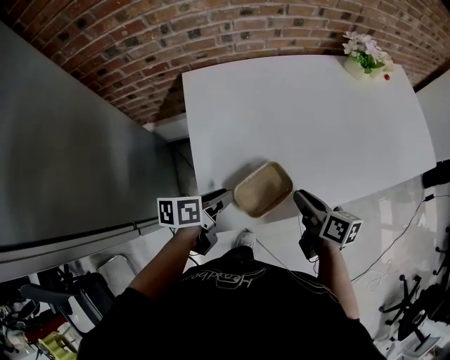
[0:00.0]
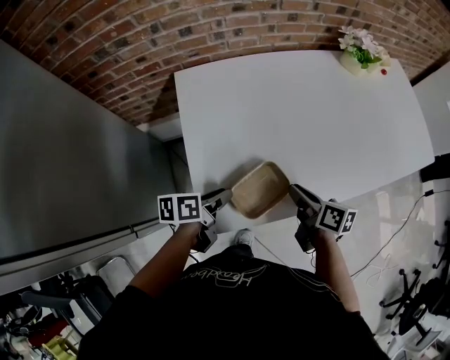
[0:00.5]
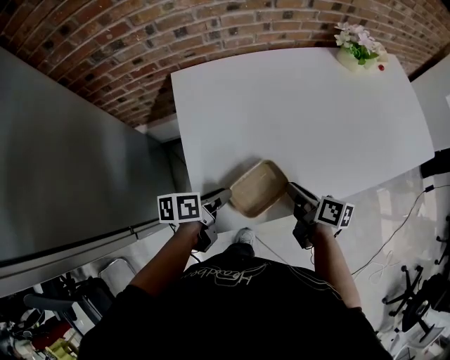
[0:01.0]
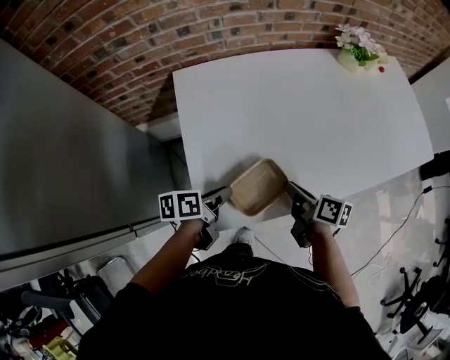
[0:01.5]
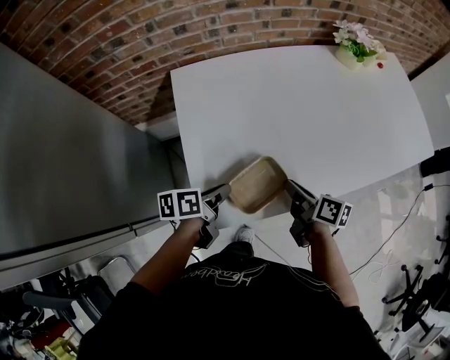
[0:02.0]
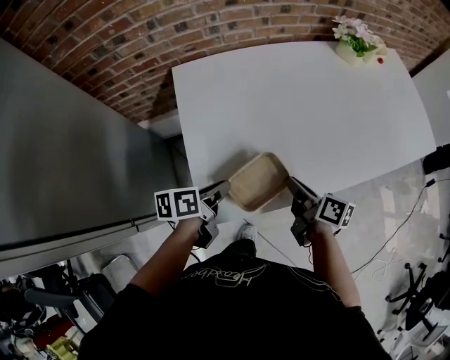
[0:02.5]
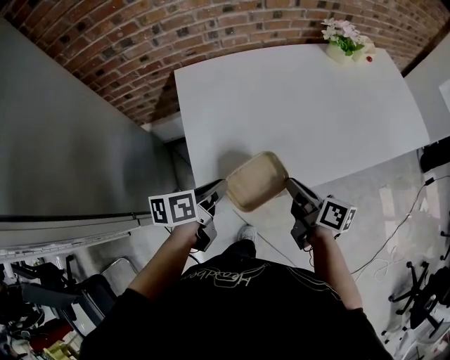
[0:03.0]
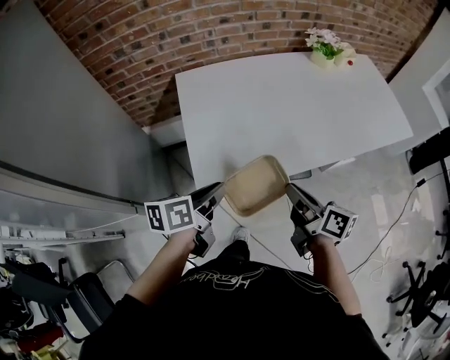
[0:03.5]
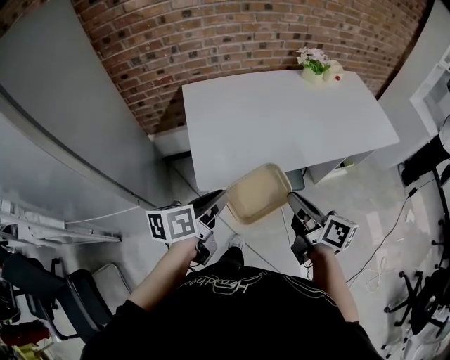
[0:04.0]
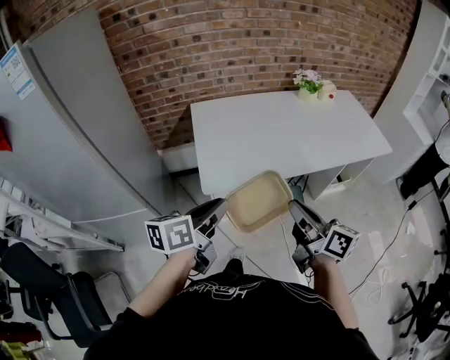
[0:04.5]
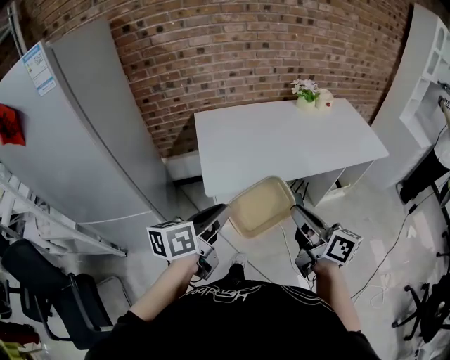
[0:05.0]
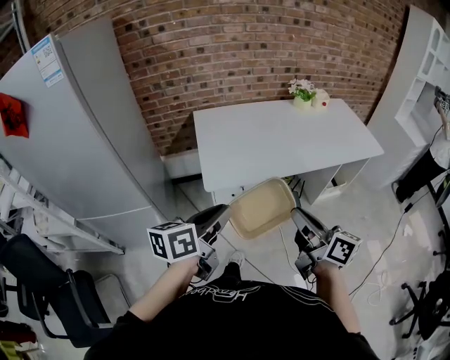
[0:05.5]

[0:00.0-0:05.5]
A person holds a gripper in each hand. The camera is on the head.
0:00.0 to 0:02.0: The grippers move only a little.
0:02.0 to 0:03.5: The left gripper moves upward and backward, approximately 15 cm, while the right gripper heads backward and upward, covering approximately 20 cm.
0:03.5 to 0:05.5: The two grippers go approximately 25 cm backward and upward. The left gripper changes its angle by approximately 20 degrees.

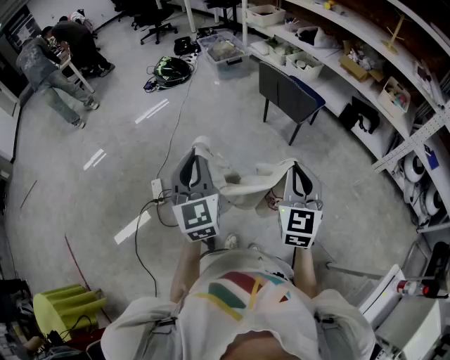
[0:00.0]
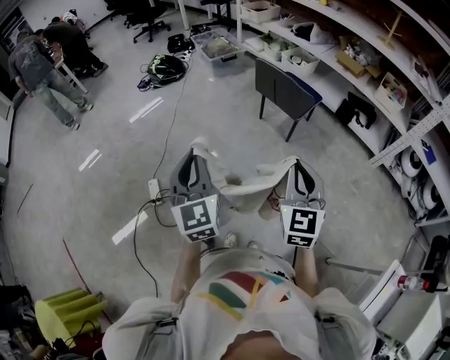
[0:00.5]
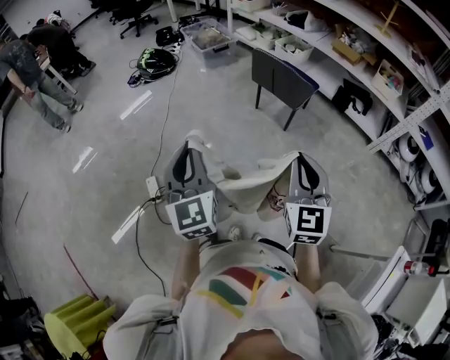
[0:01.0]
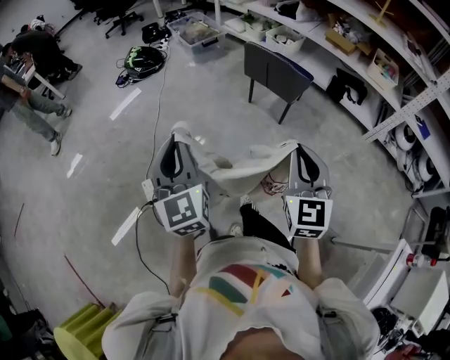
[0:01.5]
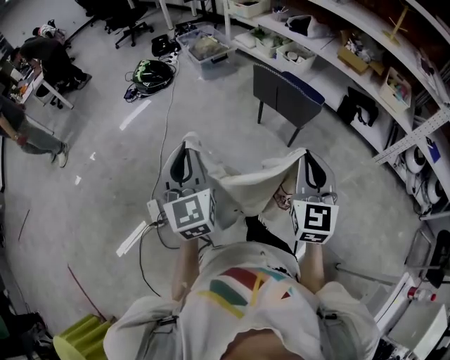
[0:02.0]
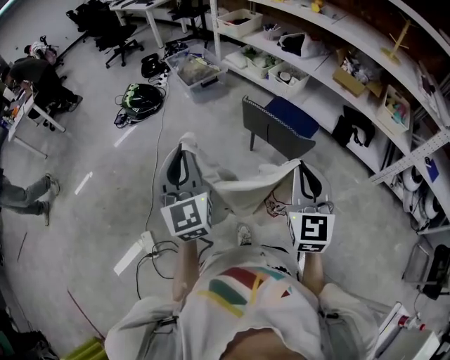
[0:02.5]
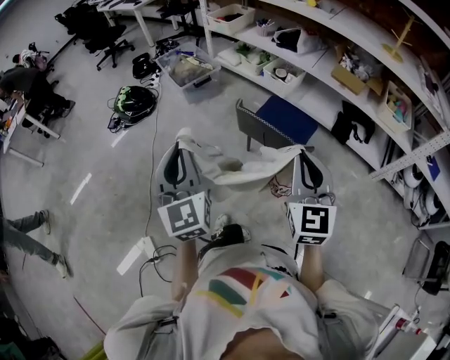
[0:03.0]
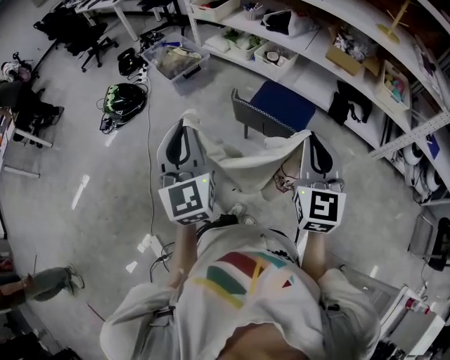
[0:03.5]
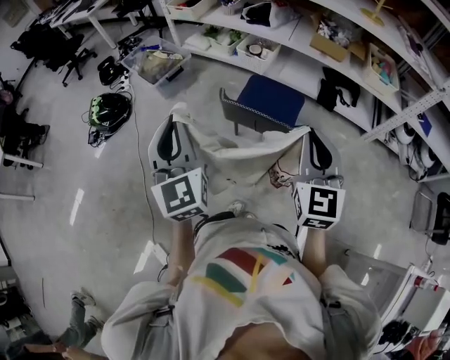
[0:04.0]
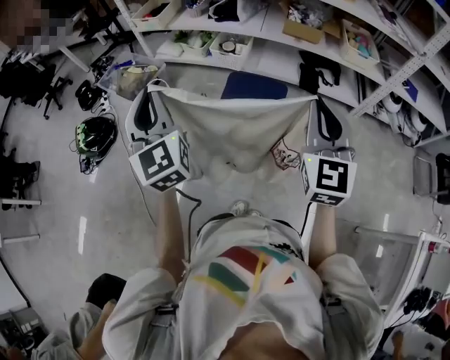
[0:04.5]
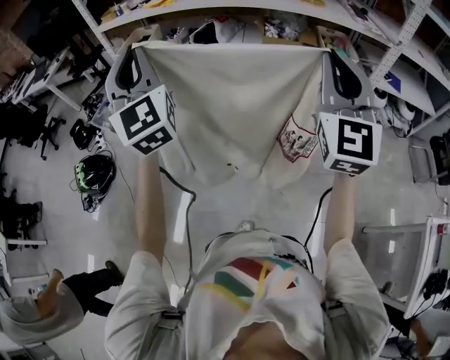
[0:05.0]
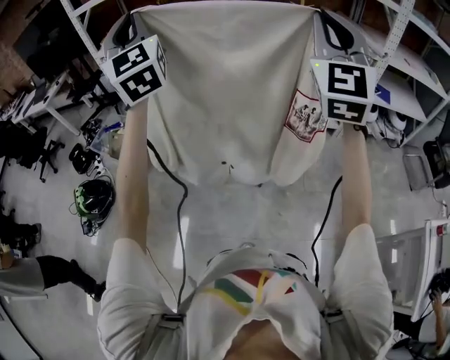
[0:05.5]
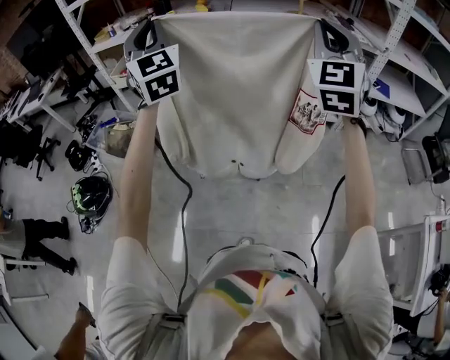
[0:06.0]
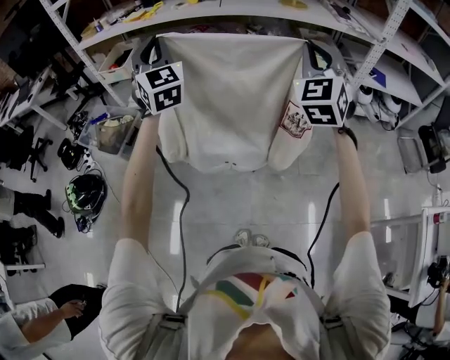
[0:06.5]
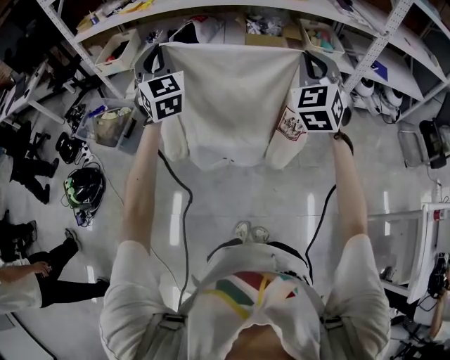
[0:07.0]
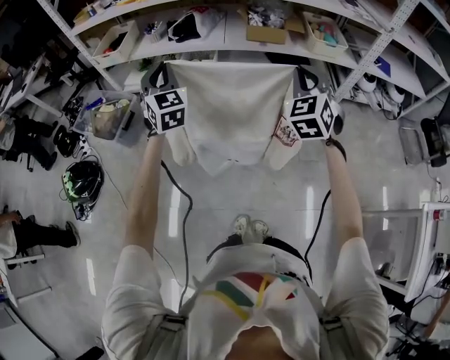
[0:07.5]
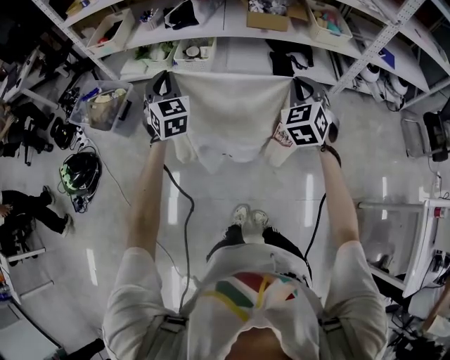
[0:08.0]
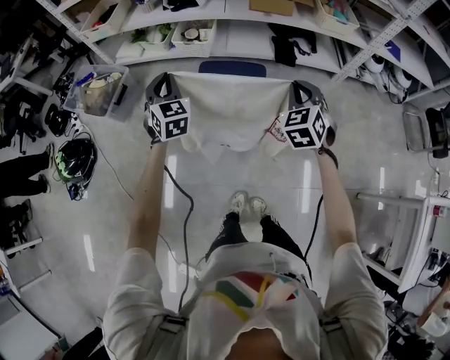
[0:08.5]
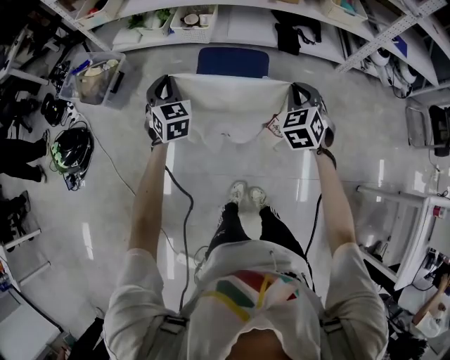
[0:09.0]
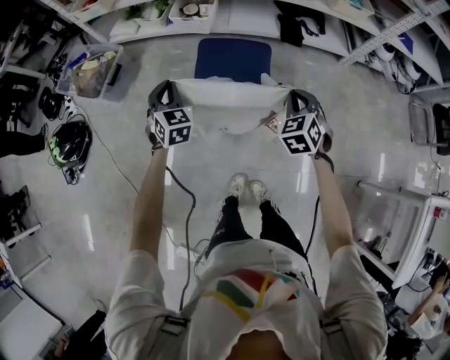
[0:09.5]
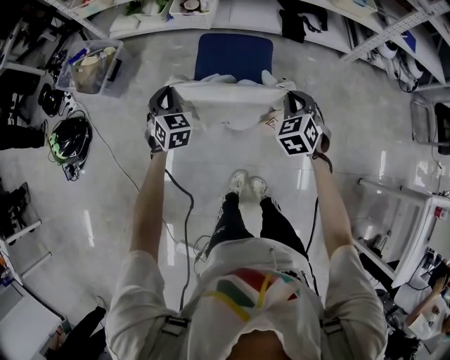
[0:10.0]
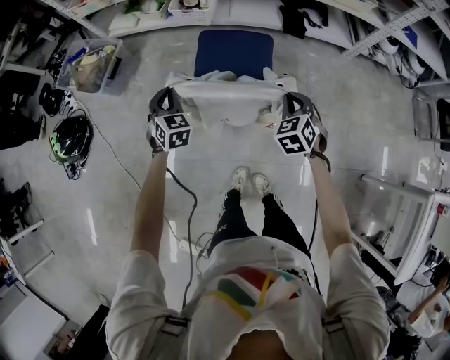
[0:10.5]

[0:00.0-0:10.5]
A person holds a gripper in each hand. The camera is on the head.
0:00.0 to 0:02.0: The grippers both shift forward by about 15 cm.
0:02.0 to 0:04.0: The grippers both shift forward by about 30 cm.
0:04.0 to 0:06.5: The left gripper heads forward, covering some 35 cm, and turns by roughly 30 degrees. Meanwhile the right gripper travels forward, upward and to the right by roughly 25 cm, and turns by roughly 40 degrees.
0:06.5 to 0:08.5: The two grippers go some 30 cm downward. The right gripper tips its fingers downward by some 30 degrees. Meanwhile the left gripper swivels approximately 30 degrees.
0:08.5 to 0:10.5: Both grippers travel together downward, about 15 cm.

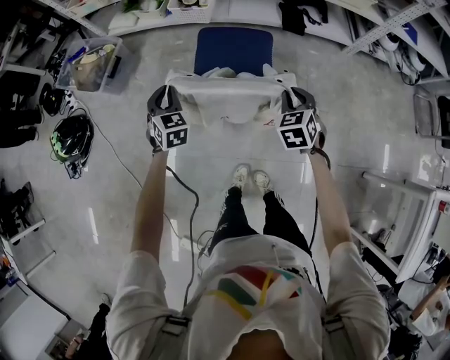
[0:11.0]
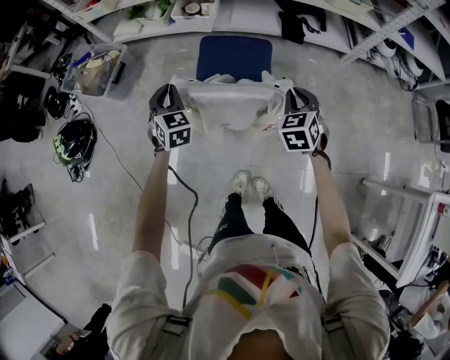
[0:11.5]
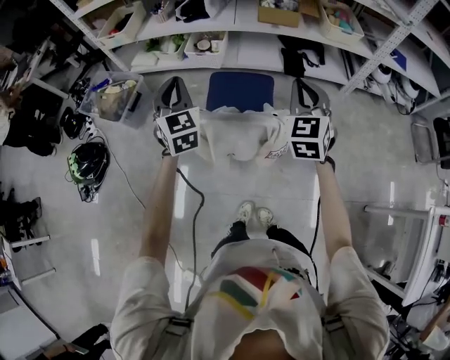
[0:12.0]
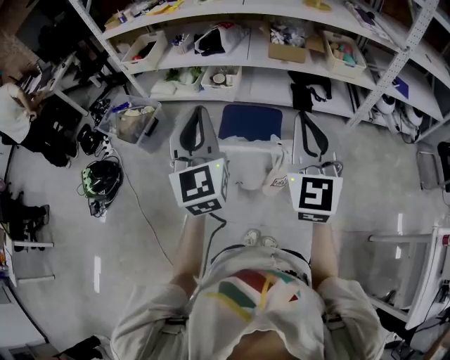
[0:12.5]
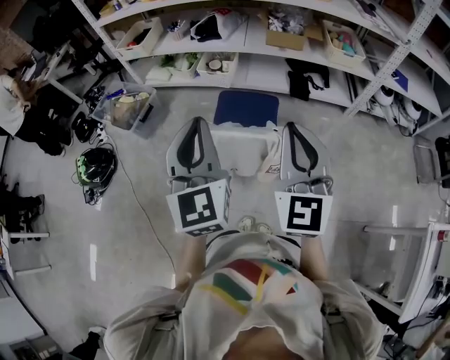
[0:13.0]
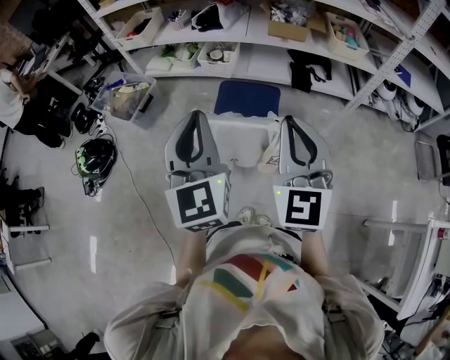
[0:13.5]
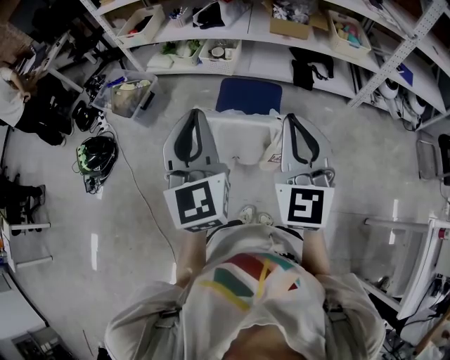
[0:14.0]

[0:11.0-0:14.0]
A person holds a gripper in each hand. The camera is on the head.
0:11.0 to 0:12.5: Both grippers move upward, about 35 cm. The left gripper tips its fingers upward by approximately 40 degrees; the right gripper tilts its fingers approximately 50 degrees upward.
0:12.5 to 0:14.0: The left gripper goes about 5 cm backward. The right gripper changes place by approximately 5 cm.

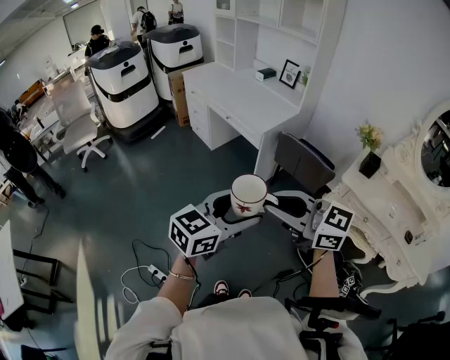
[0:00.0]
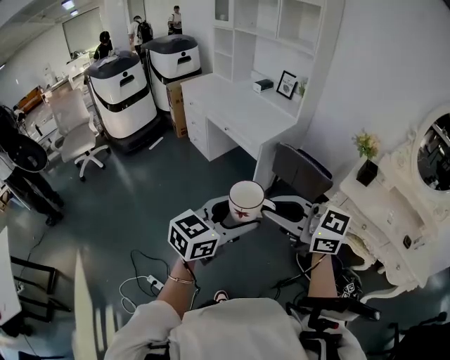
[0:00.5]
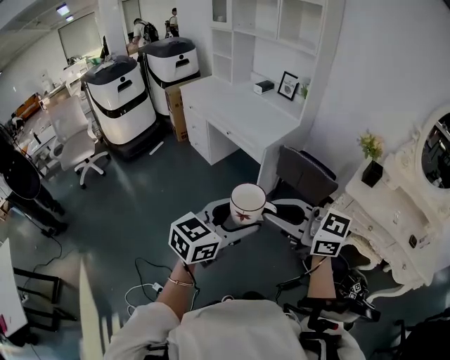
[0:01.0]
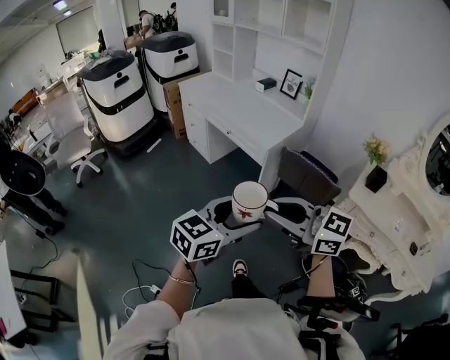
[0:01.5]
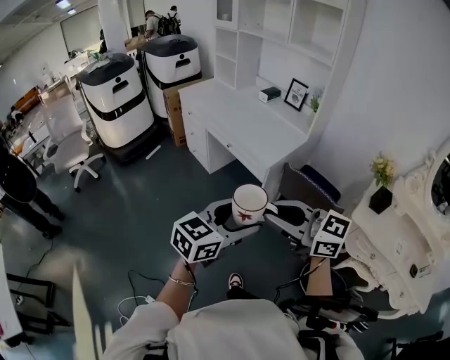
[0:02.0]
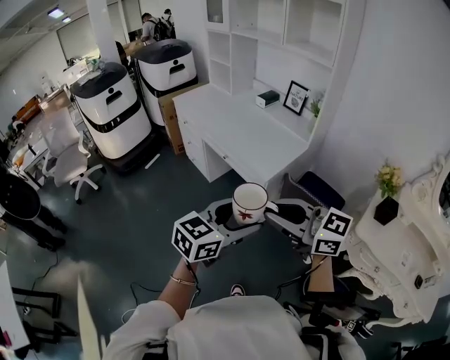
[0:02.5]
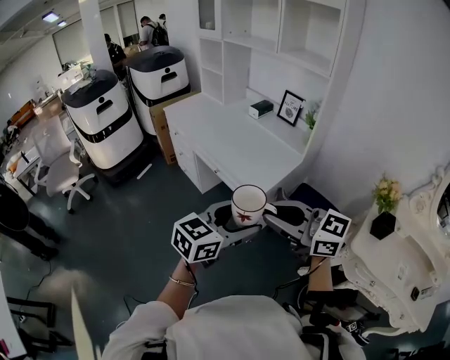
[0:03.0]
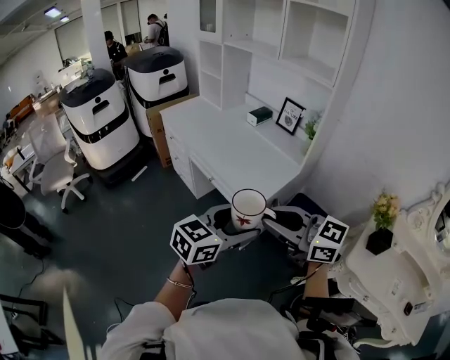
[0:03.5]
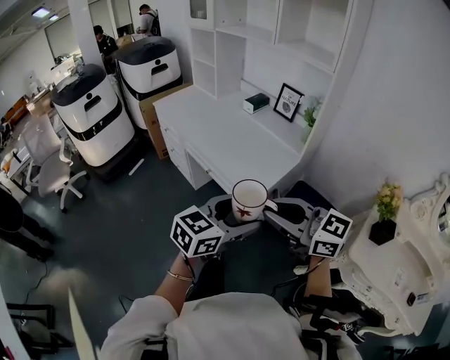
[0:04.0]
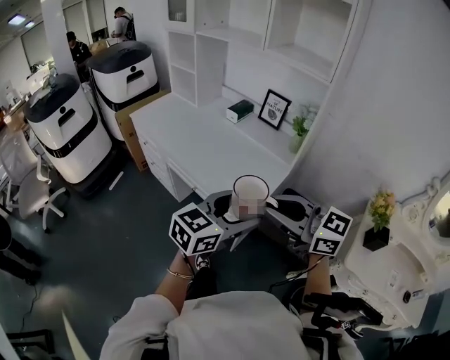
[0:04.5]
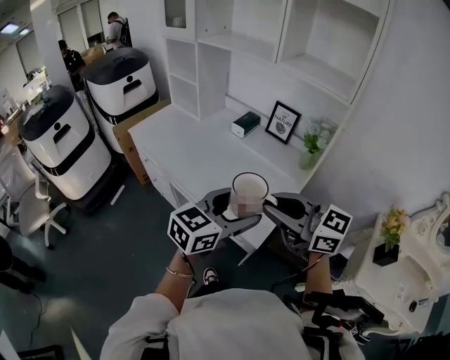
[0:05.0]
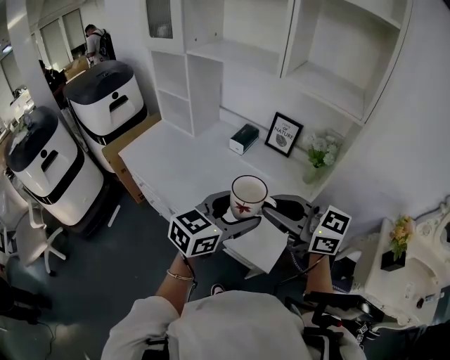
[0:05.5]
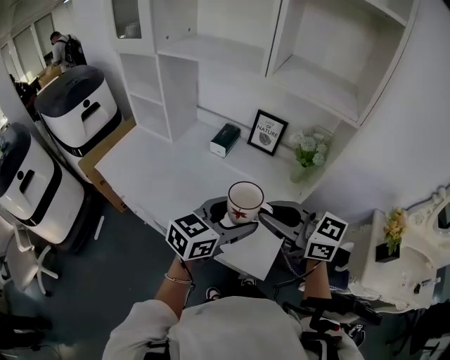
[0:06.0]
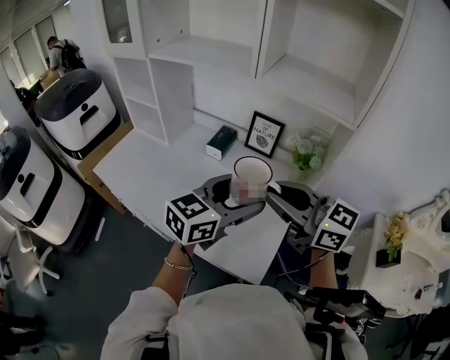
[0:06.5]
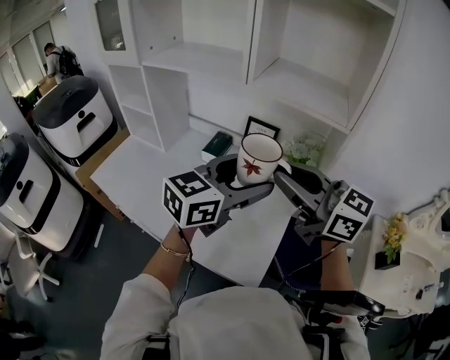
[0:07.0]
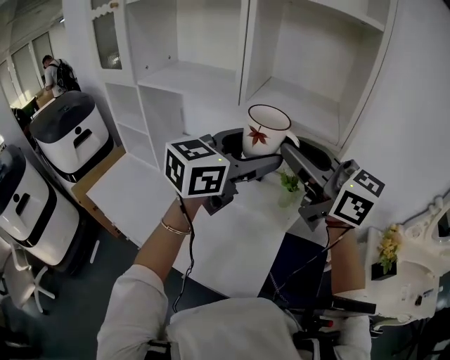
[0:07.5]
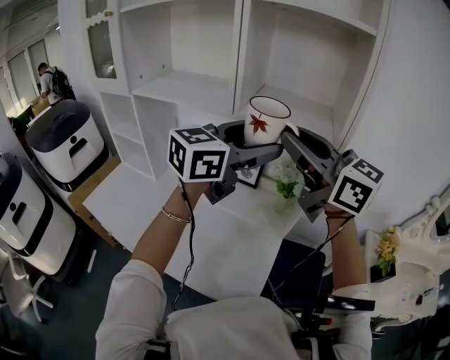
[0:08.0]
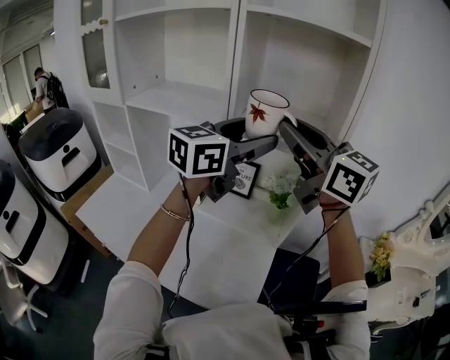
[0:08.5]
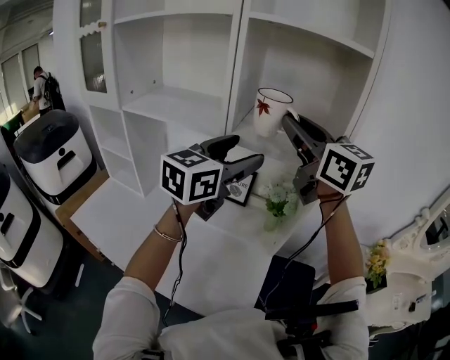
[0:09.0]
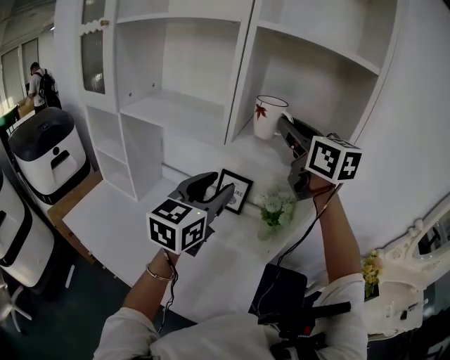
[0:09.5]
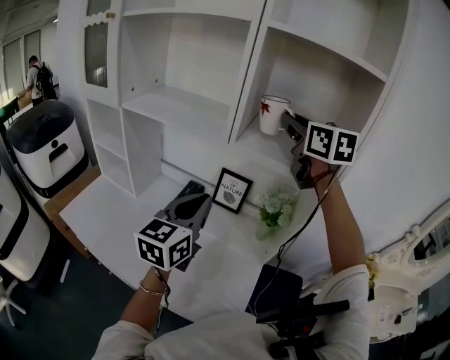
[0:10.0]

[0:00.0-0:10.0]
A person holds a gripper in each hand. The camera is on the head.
0:00.0 to 0:02.0: The grippers both shift forward by about 20 cm.
0:02.0 to 0:04.0: The two grippers go about 25 cm forward.
0:04.0 to 0:06.0: The grippers both shift forward by approximately 35 cm. The right gripper rotates roughly 20 degrees.
0:06.0 to 0:08.0: The two grippers go approximately 30 cm upward and forward. The right gripper rotates roughly 20 degrees.
0:08.0 to 0:10.0: The right gripper shifts some 20 cm forward, and turns by approximately 30 degrees, while the left gripper travels to the left and downward by roughly 15 cm, changes its angle by some 30 degrees, and closes up.
